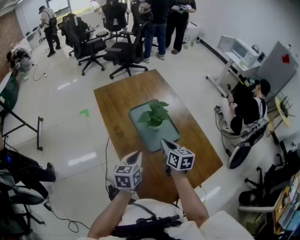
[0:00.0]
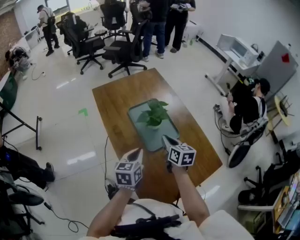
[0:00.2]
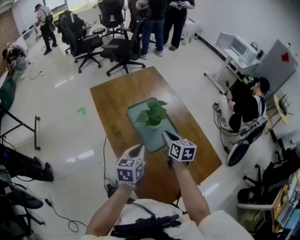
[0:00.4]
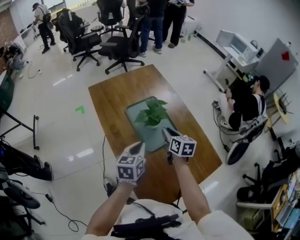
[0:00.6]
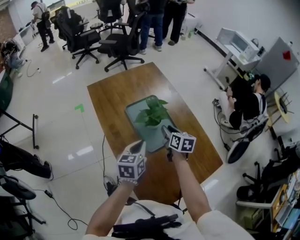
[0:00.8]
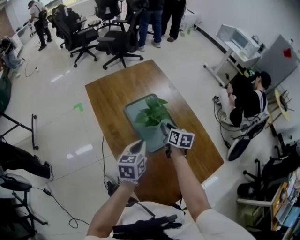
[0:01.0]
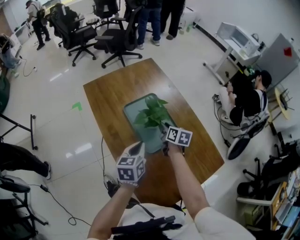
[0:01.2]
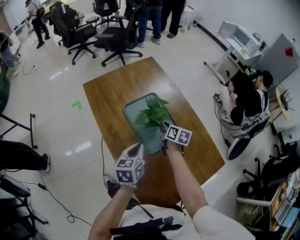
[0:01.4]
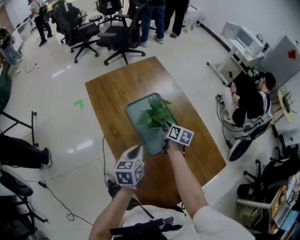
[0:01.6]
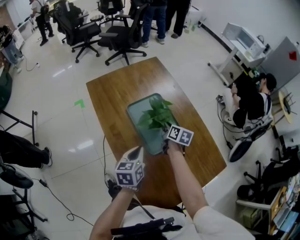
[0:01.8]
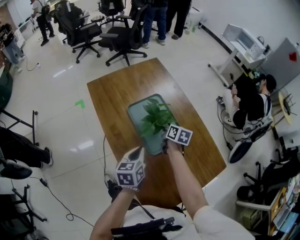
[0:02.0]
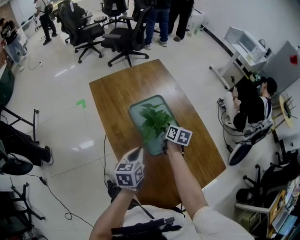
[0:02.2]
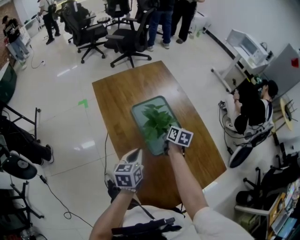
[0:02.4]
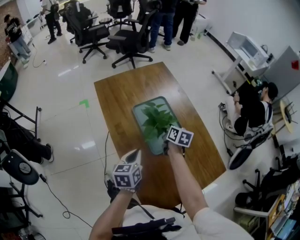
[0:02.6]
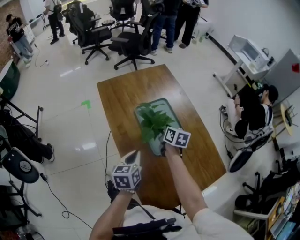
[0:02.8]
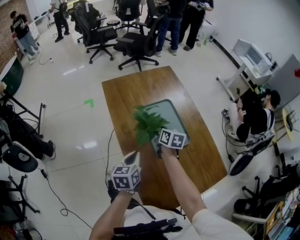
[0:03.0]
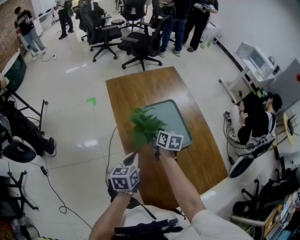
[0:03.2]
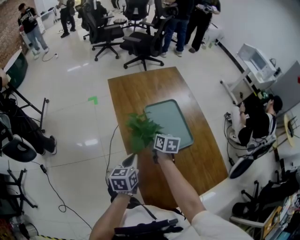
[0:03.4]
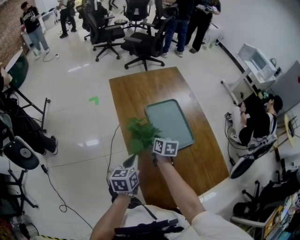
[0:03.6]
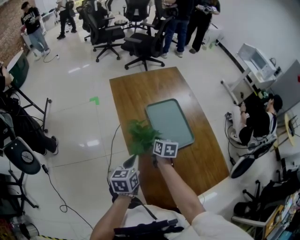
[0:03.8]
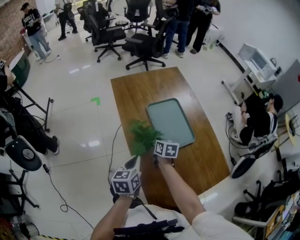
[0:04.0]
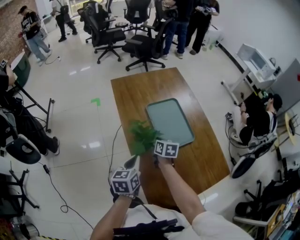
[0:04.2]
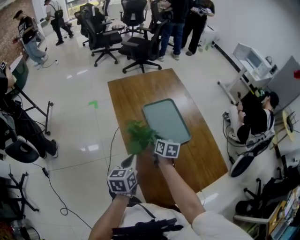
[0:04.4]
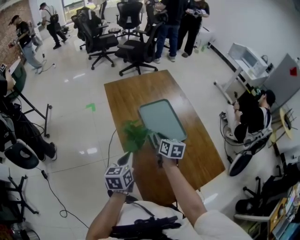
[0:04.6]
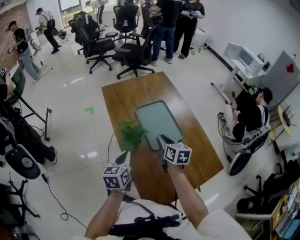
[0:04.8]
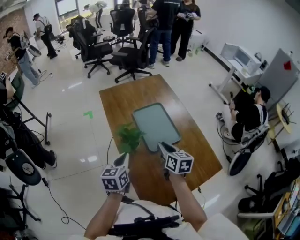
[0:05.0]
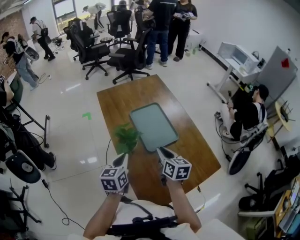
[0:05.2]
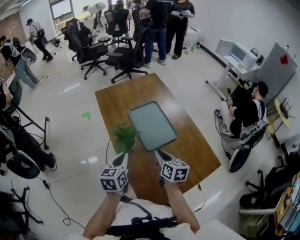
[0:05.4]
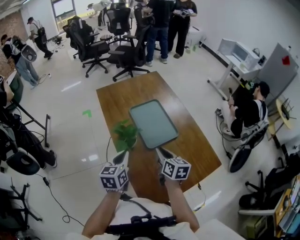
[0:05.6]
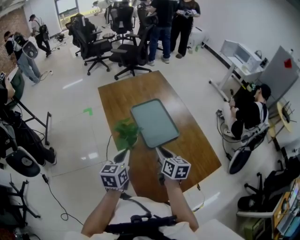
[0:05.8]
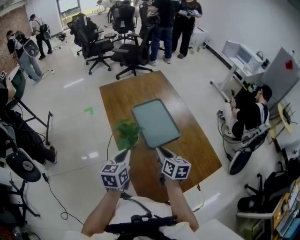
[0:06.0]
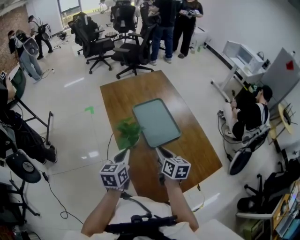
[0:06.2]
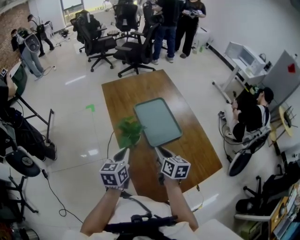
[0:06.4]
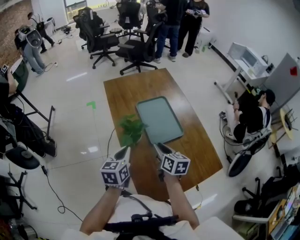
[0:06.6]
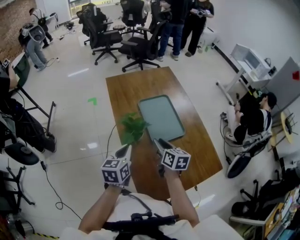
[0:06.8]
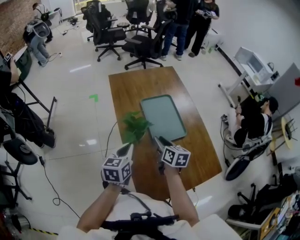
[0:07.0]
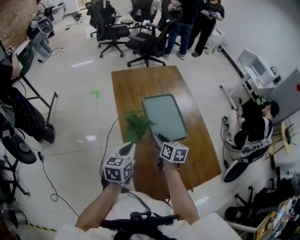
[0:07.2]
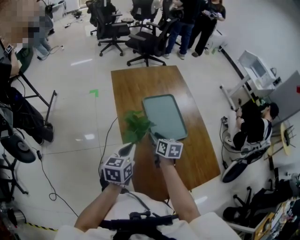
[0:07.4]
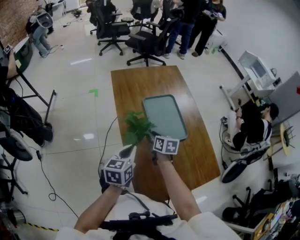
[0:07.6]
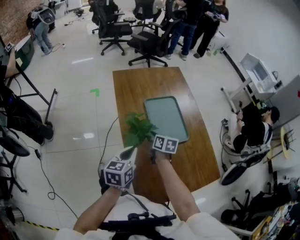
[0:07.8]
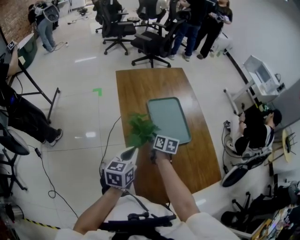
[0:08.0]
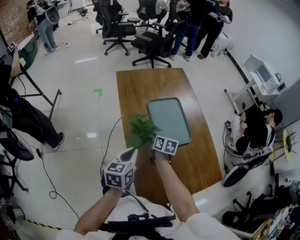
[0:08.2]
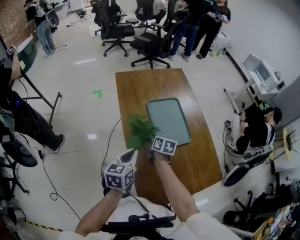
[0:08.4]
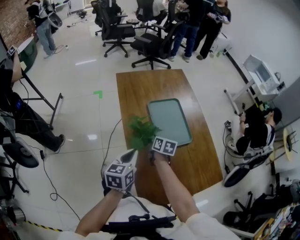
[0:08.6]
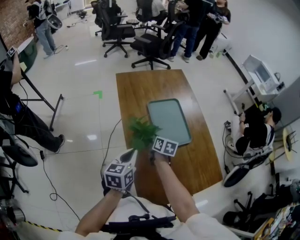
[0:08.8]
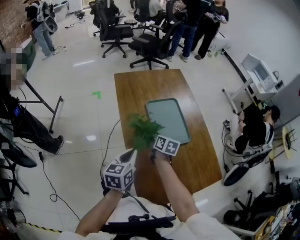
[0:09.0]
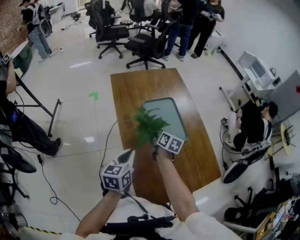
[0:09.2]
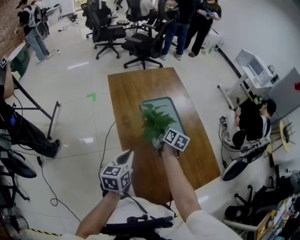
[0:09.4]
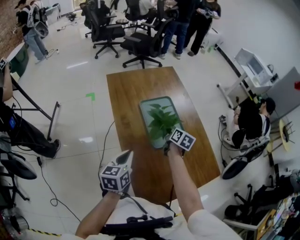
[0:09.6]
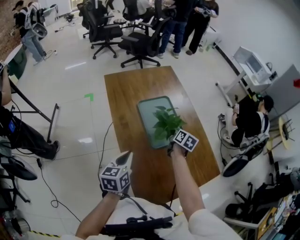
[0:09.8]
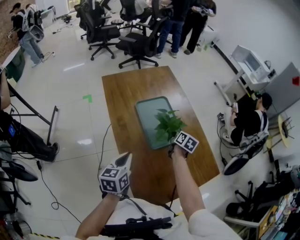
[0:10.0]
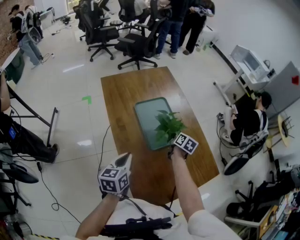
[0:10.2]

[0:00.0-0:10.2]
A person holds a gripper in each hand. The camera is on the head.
0:00.0 to 0:01.4: The right gripper is displaced forward and downward by about 20 cm, rotates some 20 degrees, and opens; the left gripper is displaced forward by approximately 10 cm.
0:01.4 to 0:03.0: The right gripper goes roughly 10 cm to the left and upward, and closes up; the left gripper heads to the left and backward, covering roughly 10 cm.
0:03.0 to 0:04.4: The left gripper goes approximately 5 cm backward, while the right gripper moves backward and to the left, roughly 10 cm.
0:04.4 to 0:05.8: The right gripper moves backward, to the right and upward, some 15 cm. The left gripper ends up approximately 5 cm from where it was.
0:05.8 to 0:07.2: The right gripper heads forward and to the left, covering some 10 cm.
0:07.2 to 0:08.8: The right gripper moves downward and forward, approximately 10 cm, and closes its fingers.
0:08.8 to 0:10.2: The right gripper heads to the right, covering about 20 cm, and swivels approximately 30 degrees.

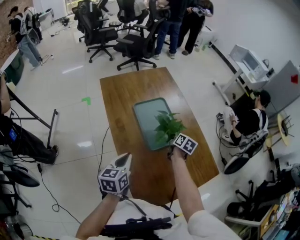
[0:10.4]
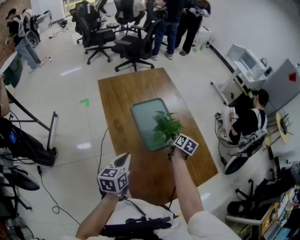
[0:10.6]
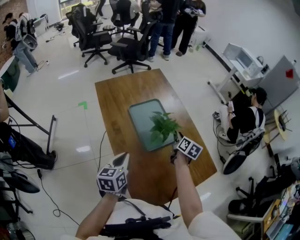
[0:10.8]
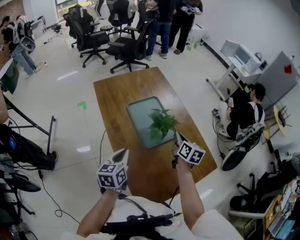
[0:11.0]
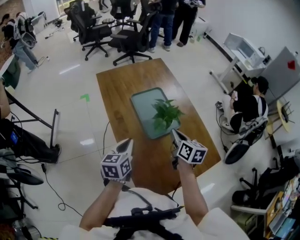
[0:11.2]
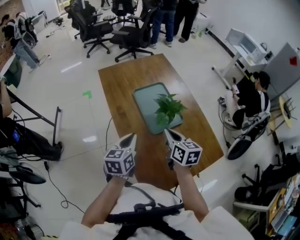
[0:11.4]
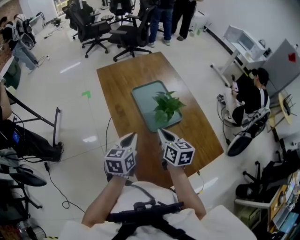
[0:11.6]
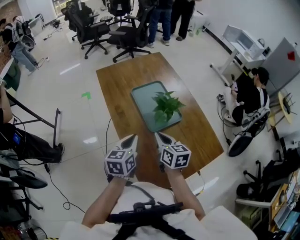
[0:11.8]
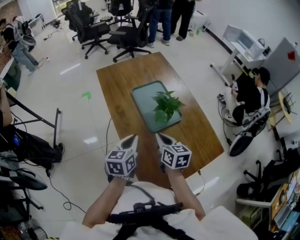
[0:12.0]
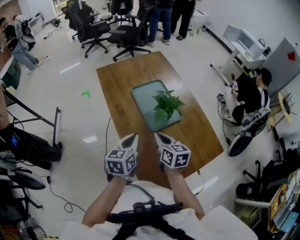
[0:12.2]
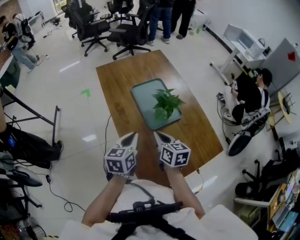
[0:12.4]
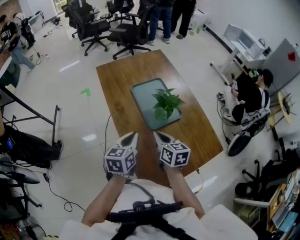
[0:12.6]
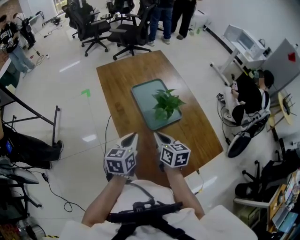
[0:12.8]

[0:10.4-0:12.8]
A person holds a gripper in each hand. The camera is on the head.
0:10.4 to 0:11.6: The right gripper heads backward, upward and to the left, covering some 25 cm, and rotates approximately 30 degrees.
0:11.6 to 0:12.8: The grippers stay close to where they were, moving slightly.

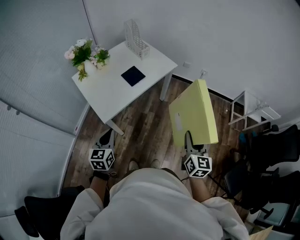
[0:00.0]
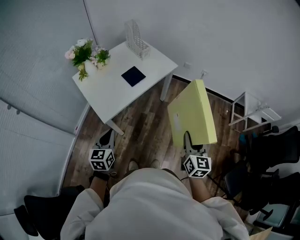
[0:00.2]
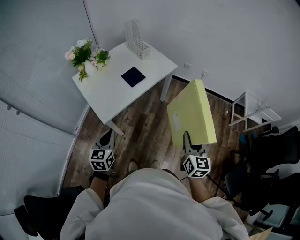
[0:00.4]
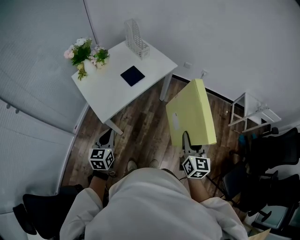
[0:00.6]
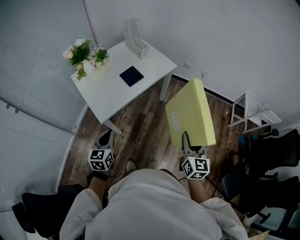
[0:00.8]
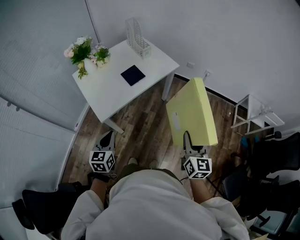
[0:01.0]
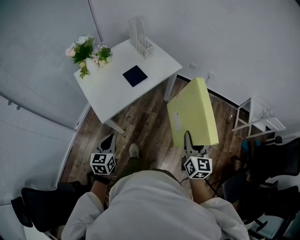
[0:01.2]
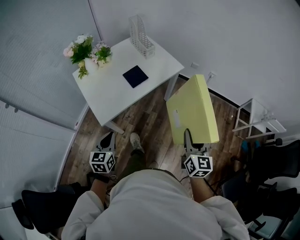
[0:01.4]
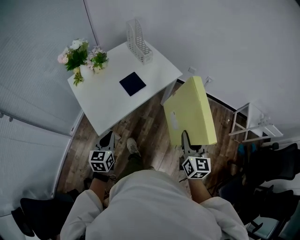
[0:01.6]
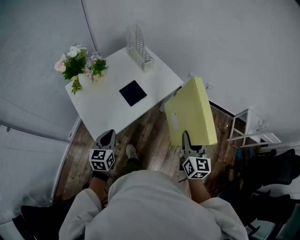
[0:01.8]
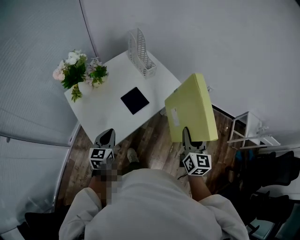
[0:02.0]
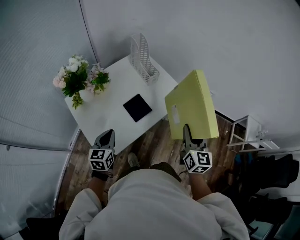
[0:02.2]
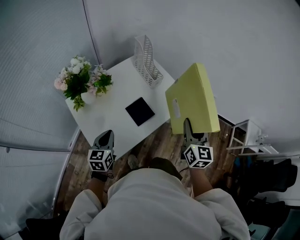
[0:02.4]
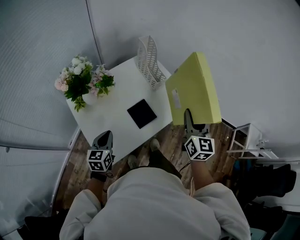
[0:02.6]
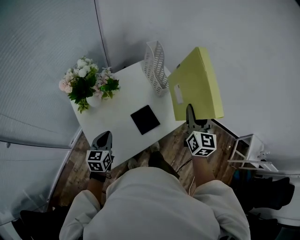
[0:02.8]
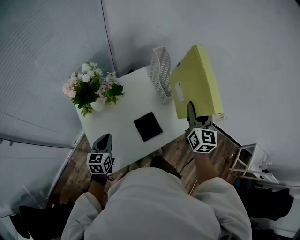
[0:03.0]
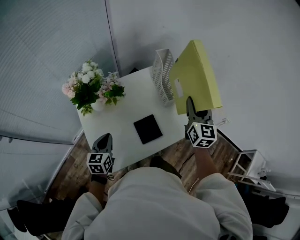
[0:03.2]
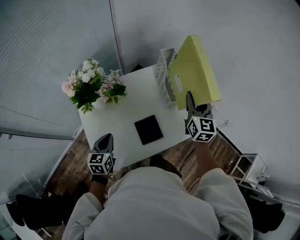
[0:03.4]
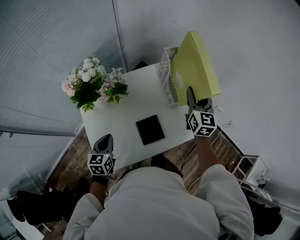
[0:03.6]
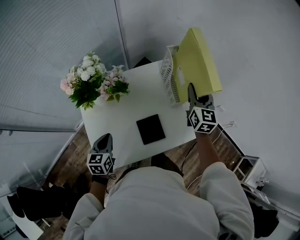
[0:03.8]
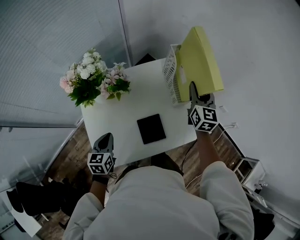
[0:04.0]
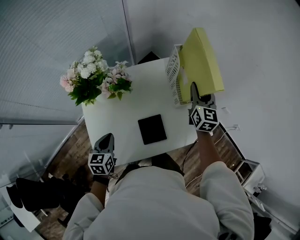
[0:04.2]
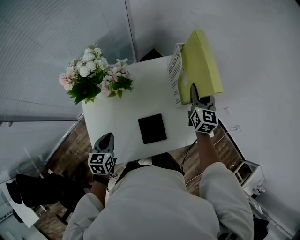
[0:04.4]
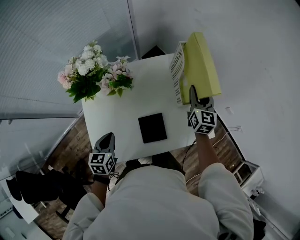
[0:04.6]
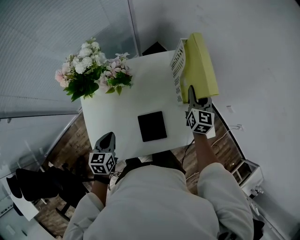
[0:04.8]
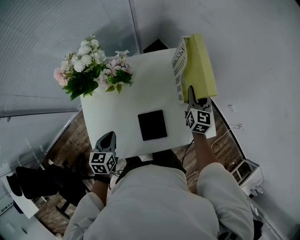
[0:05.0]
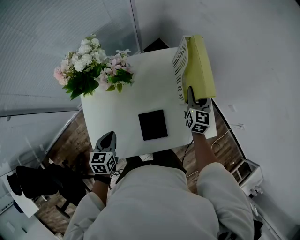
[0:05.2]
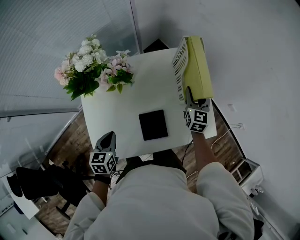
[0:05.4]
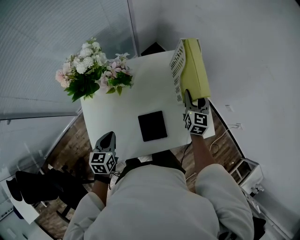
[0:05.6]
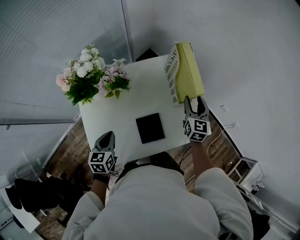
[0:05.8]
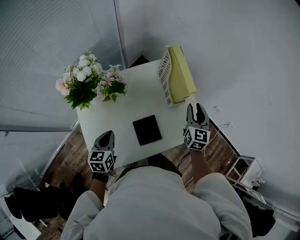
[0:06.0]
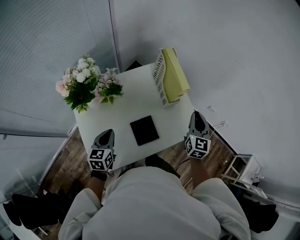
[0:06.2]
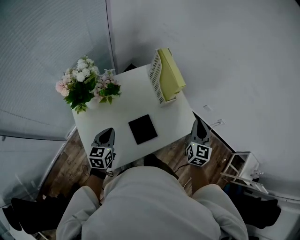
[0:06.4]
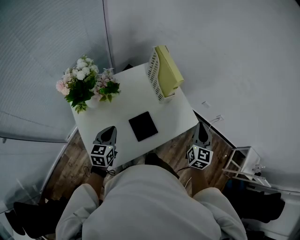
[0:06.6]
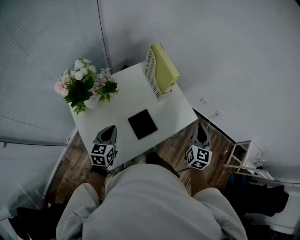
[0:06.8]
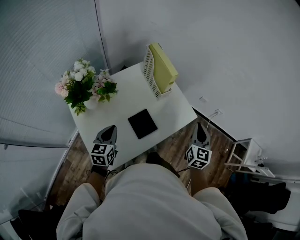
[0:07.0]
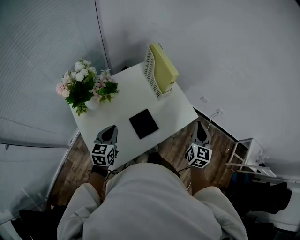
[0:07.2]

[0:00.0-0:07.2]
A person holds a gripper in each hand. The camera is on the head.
0:00.0 to 0:01.4: The left gripper shifts by about 5 cm. Meanwhile the right gripper is displaced forward by some 10 cm.
0:01.4 to 0:02.8: The left gripper moves forward and to the left, some 35 cm, while the right gripper moves forward, some 40 cm.
0:02.8 to 0:04.4: The right gripper is displaced forward and downward by about 30 cm, while the left gripper heads forward and downward, covering approximately 10 cm, and rotates approximately 20 degrees.
0:04.4 to 0:05.8: The right gripper travels backward by approximately 5 cm, and opens up.
0:05.8 to 0:07.2: The right gripper is displaced backward, to the right and upward by roughly 30 cm, swivels about 20 degrees, and closes. The left gripper goes roughly 5 cm upward, and turns by roughly 20 degrees.

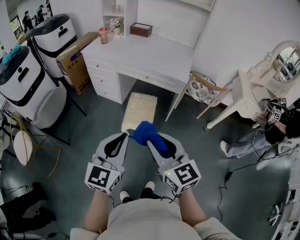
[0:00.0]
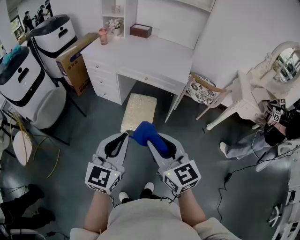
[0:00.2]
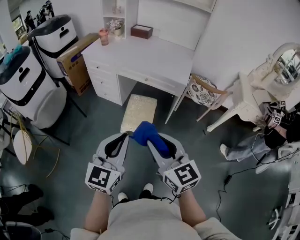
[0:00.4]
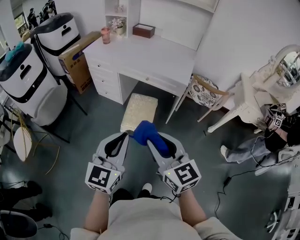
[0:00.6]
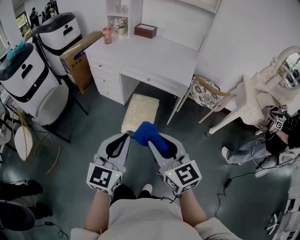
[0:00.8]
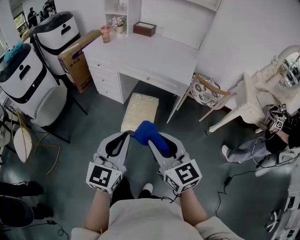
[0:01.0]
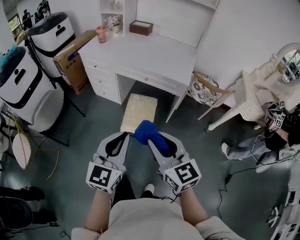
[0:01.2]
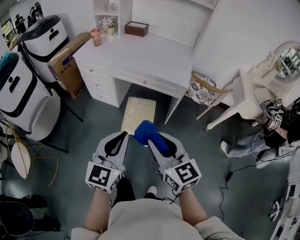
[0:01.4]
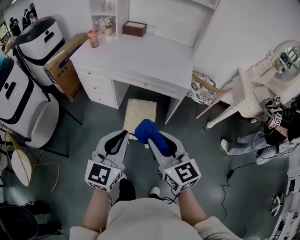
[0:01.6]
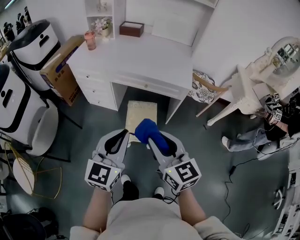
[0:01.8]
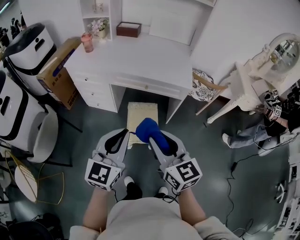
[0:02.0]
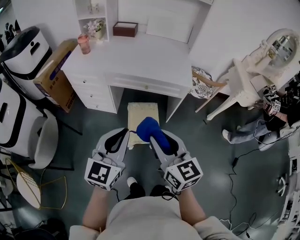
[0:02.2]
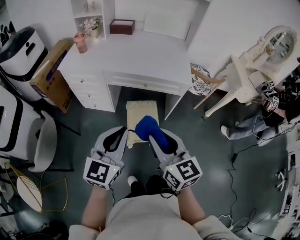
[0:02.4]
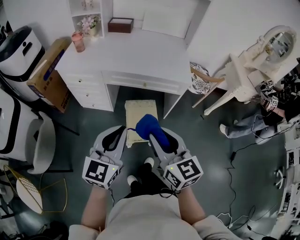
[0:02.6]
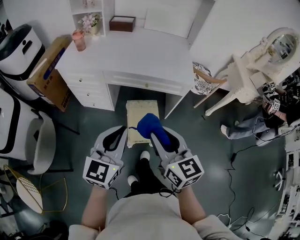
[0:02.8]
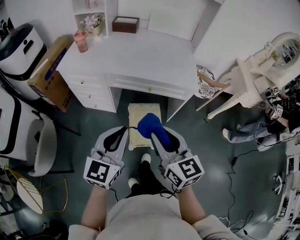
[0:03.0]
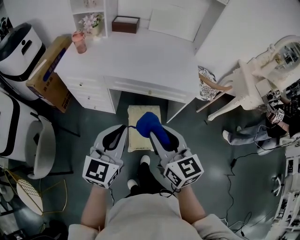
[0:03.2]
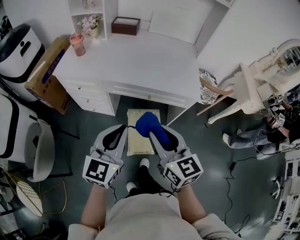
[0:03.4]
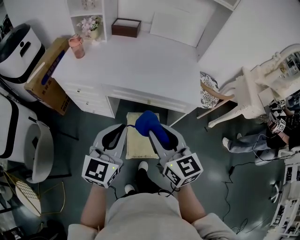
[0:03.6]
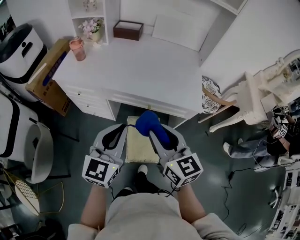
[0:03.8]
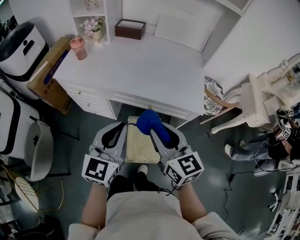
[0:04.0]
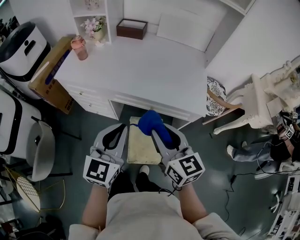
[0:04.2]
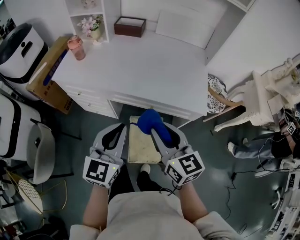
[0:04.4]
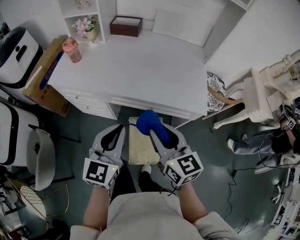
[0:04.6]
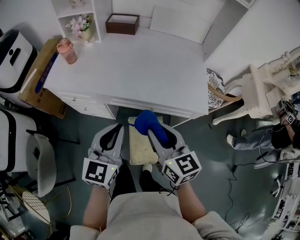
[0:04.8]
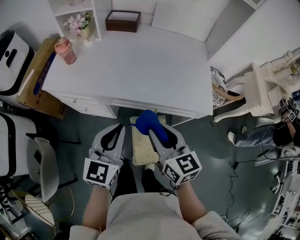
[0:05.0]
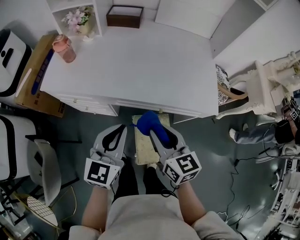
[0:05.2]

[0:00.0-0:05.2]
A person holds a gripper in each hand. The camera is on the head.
0:00.0 to 0:01.8: Both grippers move forward, some 15 cm.
0:01.8 to 0:03.4: Both grippers travel together forward, some 20 cm.
0:03.4 to 0:05.2: The right gripper shifts roughly 20 cm forward and downward, while the left gripper is displaced forward by some 20 cm.
